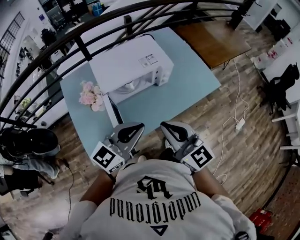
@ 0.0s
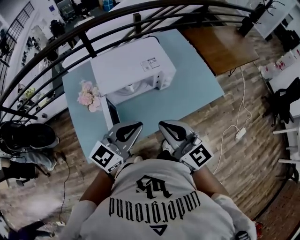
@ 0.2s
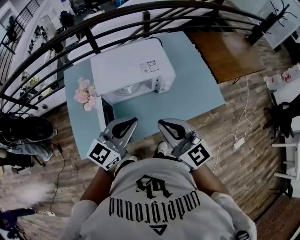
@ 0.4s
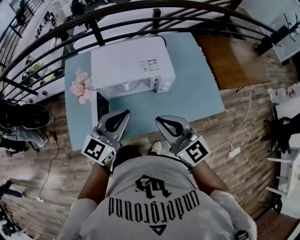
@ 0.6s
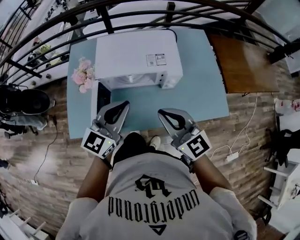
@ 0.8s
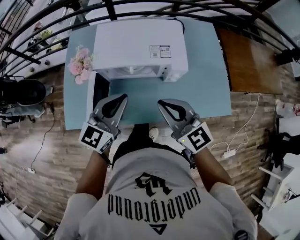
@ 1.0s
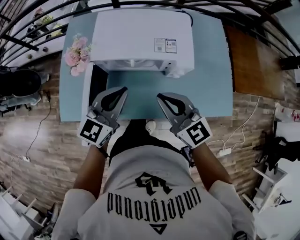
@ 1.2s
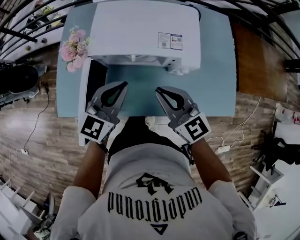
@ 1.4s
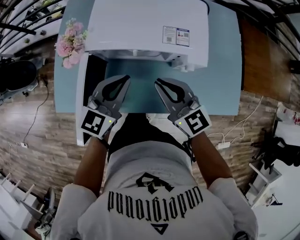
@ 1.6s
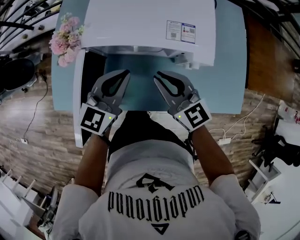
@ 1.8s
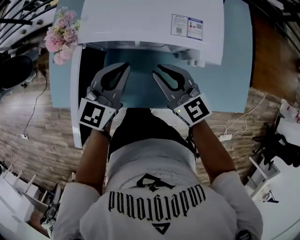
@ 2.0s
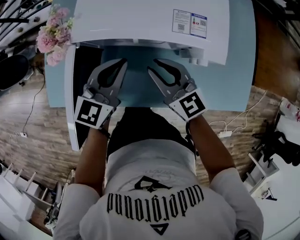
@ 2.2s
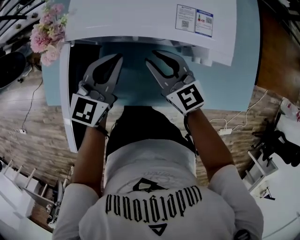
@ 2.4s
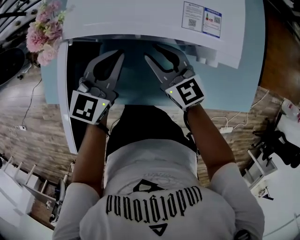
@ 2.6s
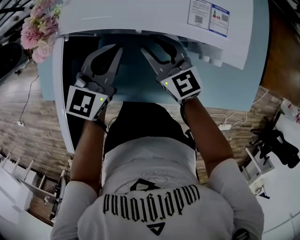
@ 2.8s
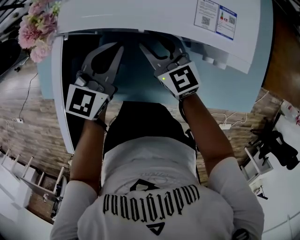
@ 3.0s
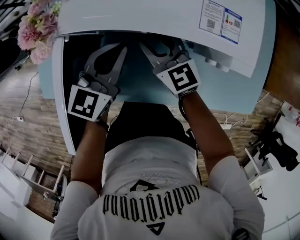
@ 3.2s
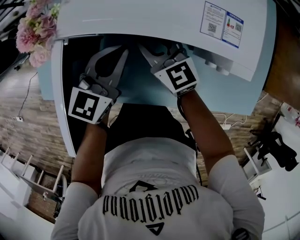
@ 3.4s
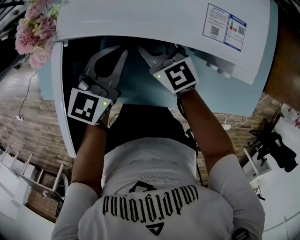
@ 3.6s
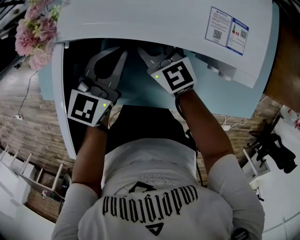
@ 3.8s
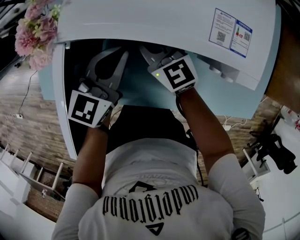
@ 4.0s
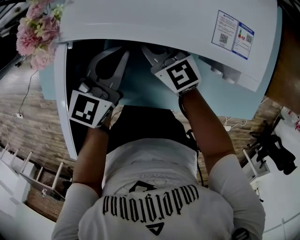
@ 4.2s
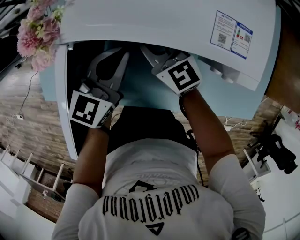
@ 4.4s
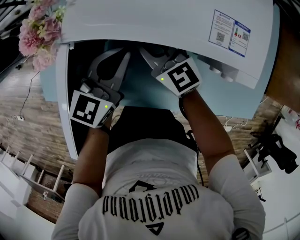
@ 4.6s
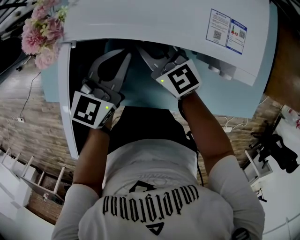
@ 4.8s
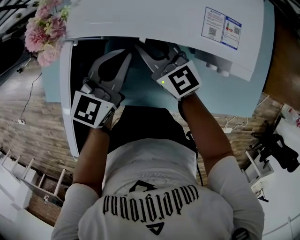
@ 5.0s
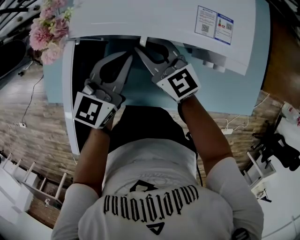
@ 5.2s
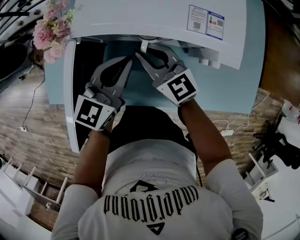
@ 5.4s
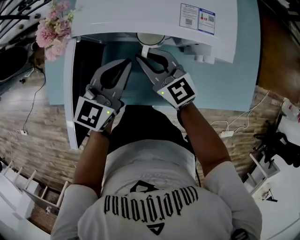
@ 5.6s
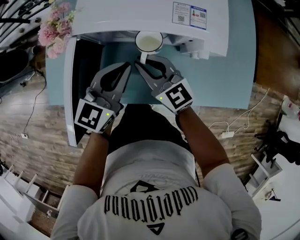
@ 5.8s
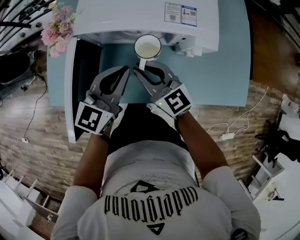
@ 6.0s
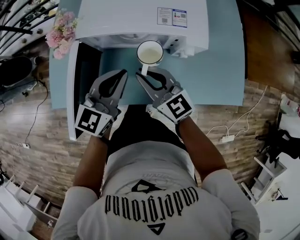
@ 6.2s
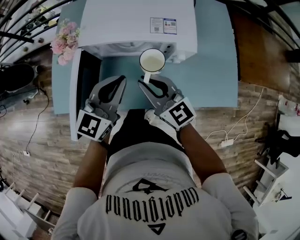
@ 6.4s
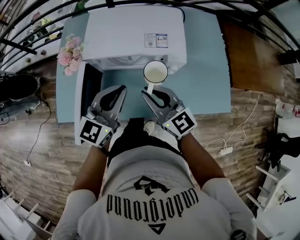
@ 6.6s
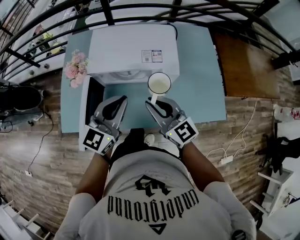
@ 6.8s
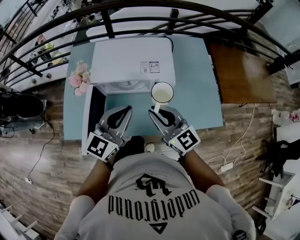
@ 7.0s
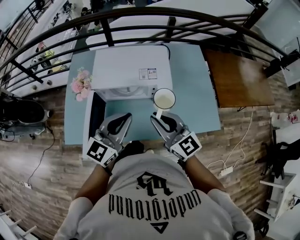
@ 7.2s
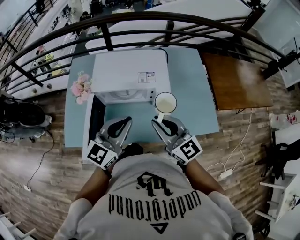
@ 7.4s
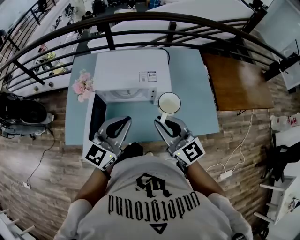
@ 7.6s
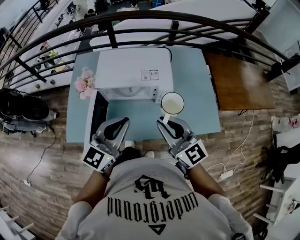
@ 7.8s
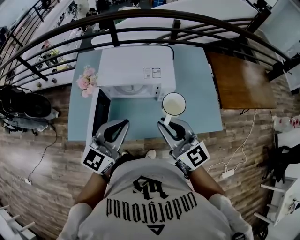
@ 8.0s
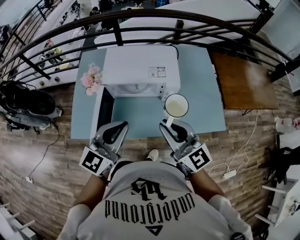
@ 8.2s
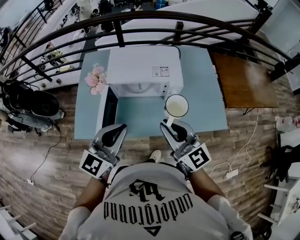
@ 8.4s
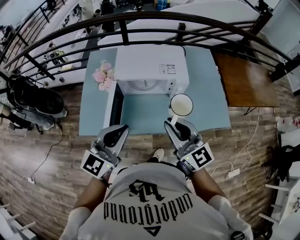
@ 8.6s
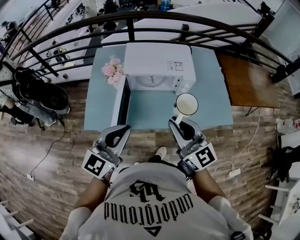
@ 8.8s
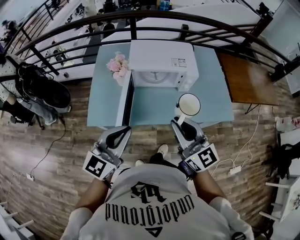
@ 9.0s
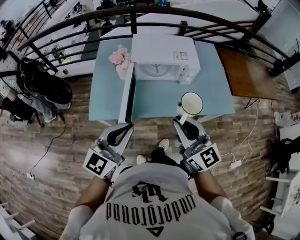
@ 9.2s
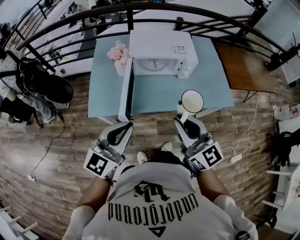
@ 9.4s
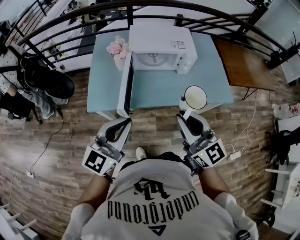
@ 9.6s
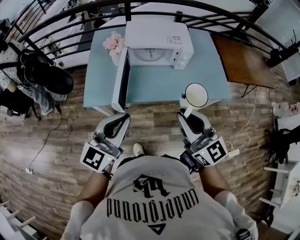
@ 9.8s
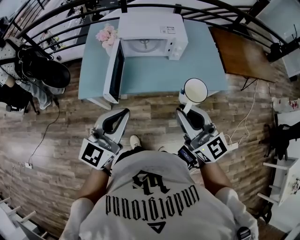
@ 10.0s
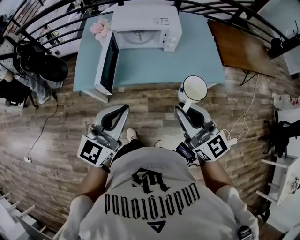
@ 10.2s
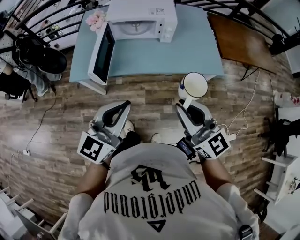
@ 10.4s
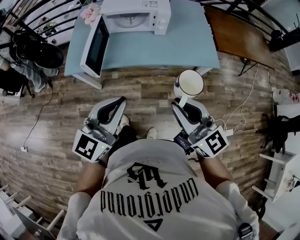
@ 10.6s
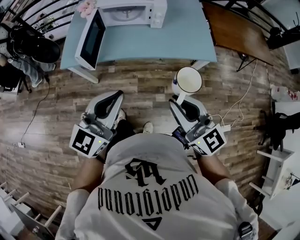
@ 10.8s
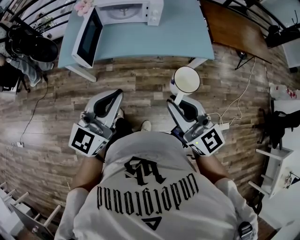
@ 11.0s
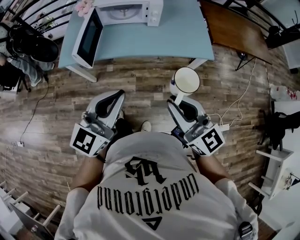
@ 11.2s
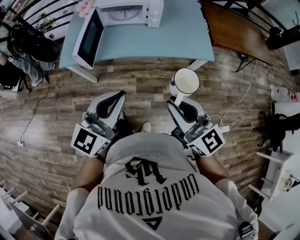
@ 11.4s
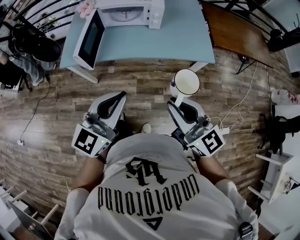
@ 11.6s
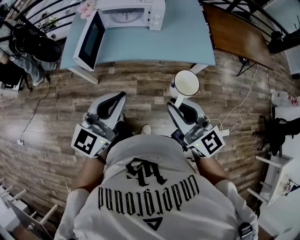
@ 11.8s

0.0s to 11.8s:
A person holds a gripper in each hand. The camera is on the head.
0.0s to 1.4s: The left gripper moves approximately 20 cm, and changes its angle by roughly 40 degrees. The right gripper shifts by about 25 cm, and turns by roughly 30 degrees.
1.4s to 3.0s: Both grippers travel together downward and forward, approximately 20 cm. The right gripper opens up.
3.0s to 4.4s: The right gripper shifts by some 5 cm.
4.4s to 6.0s: The grippers both shift backward and upward by roughly 15 cm.
6.0s to 7.4s: The left gripper travels upward and backward by about 20 cm. Meanwhile the right gripper shifts roughly 25 cm upward, to the right and backward.
7.4s to 8.8s: The right gripper moves backward, to the left and upward, some 15 cm, while the left gripper is displaced to the left and backward by some 20 cm.
8.8s to 10.4s: The grippers both shift backward and to the right by some 25 cm.
10.4s to 11.8s: The left gripper goes about 5 cm to the right. Meanwhile the right gripper is displaced backward and to the right by roughly 10 cm.

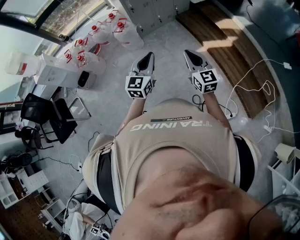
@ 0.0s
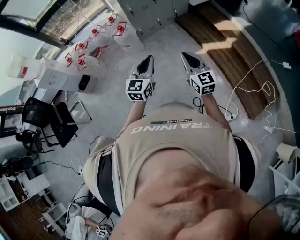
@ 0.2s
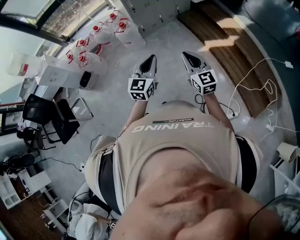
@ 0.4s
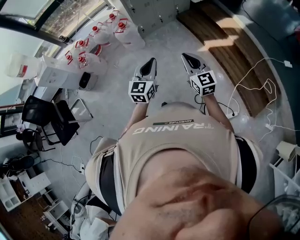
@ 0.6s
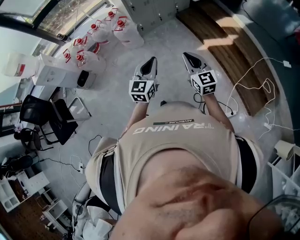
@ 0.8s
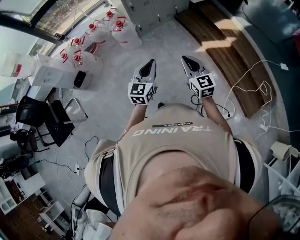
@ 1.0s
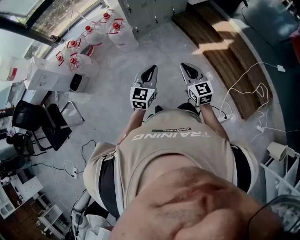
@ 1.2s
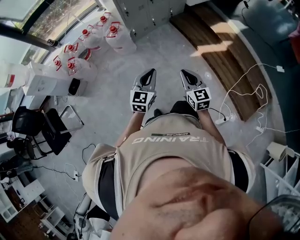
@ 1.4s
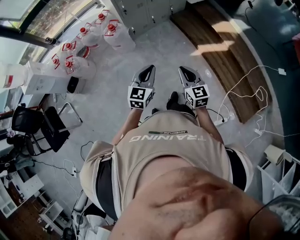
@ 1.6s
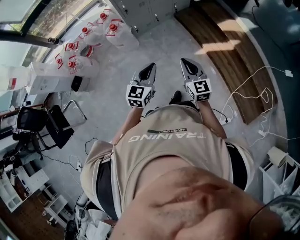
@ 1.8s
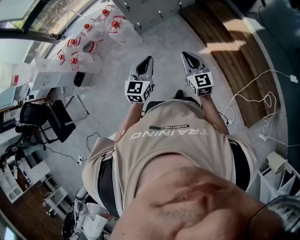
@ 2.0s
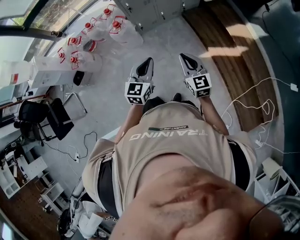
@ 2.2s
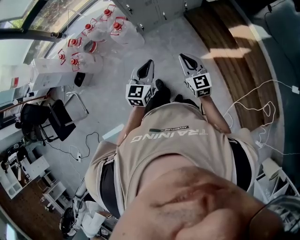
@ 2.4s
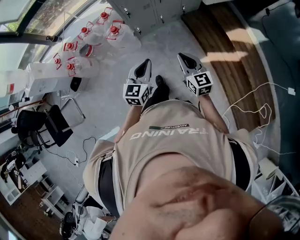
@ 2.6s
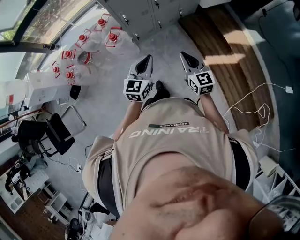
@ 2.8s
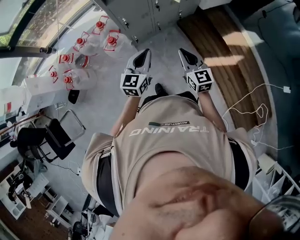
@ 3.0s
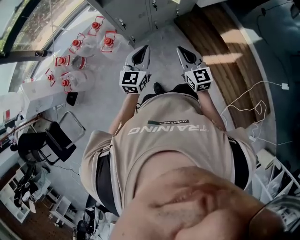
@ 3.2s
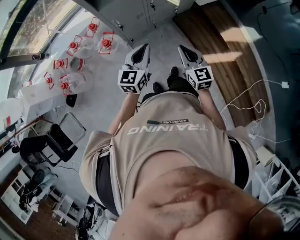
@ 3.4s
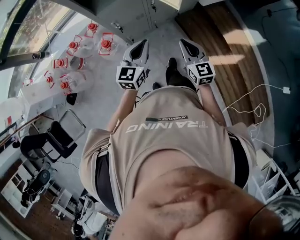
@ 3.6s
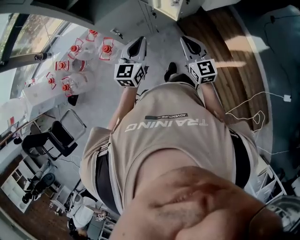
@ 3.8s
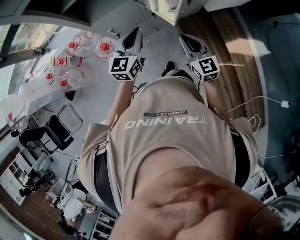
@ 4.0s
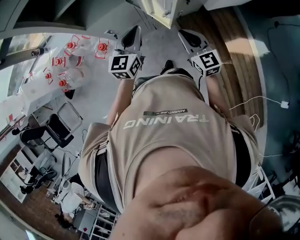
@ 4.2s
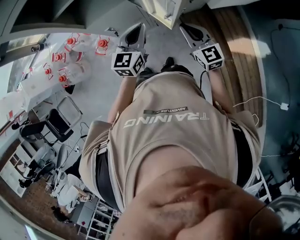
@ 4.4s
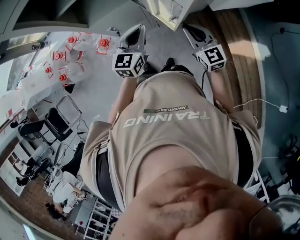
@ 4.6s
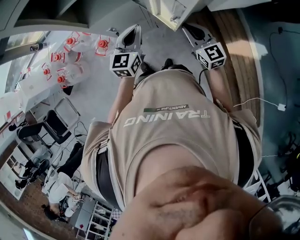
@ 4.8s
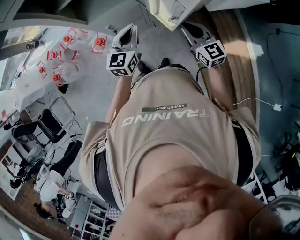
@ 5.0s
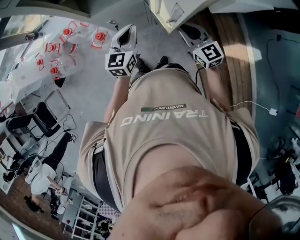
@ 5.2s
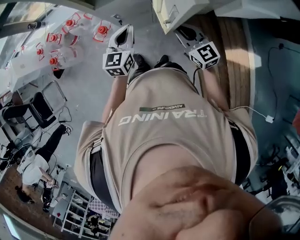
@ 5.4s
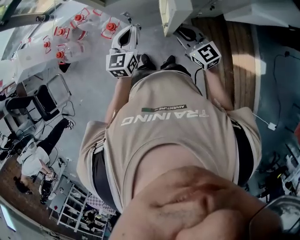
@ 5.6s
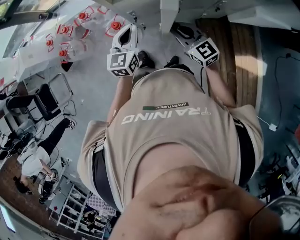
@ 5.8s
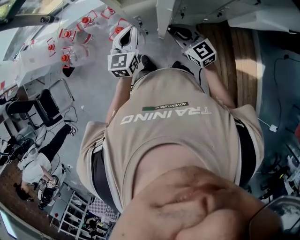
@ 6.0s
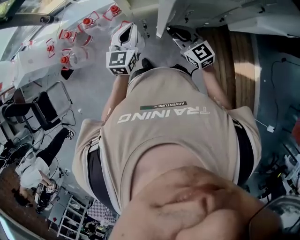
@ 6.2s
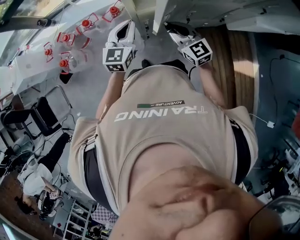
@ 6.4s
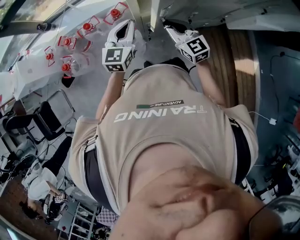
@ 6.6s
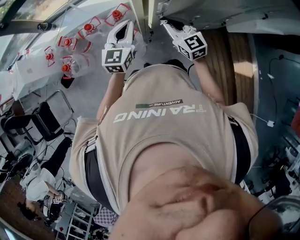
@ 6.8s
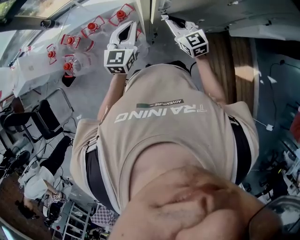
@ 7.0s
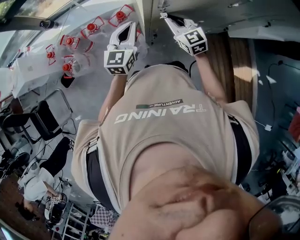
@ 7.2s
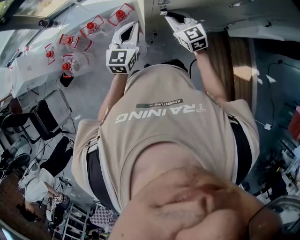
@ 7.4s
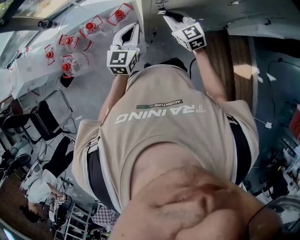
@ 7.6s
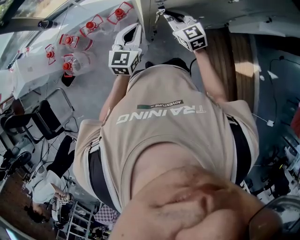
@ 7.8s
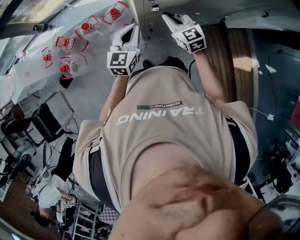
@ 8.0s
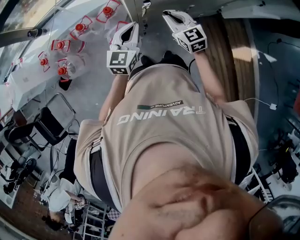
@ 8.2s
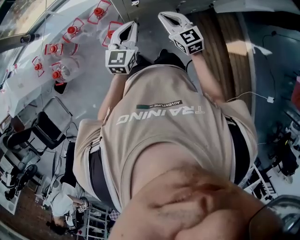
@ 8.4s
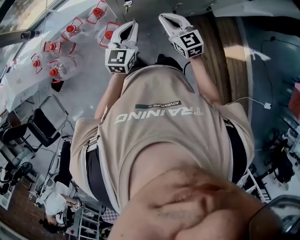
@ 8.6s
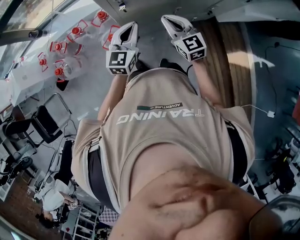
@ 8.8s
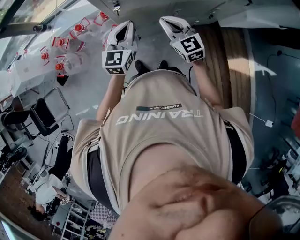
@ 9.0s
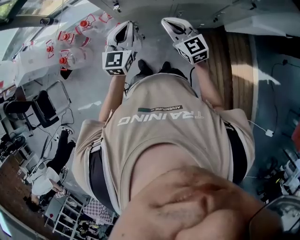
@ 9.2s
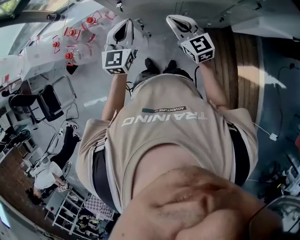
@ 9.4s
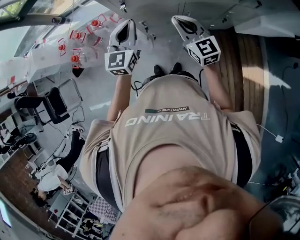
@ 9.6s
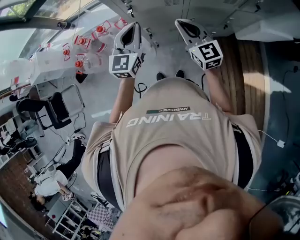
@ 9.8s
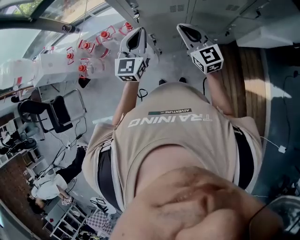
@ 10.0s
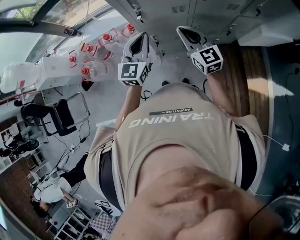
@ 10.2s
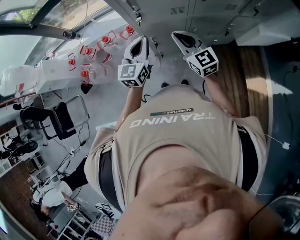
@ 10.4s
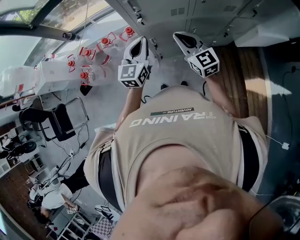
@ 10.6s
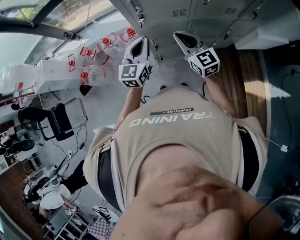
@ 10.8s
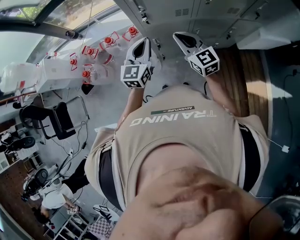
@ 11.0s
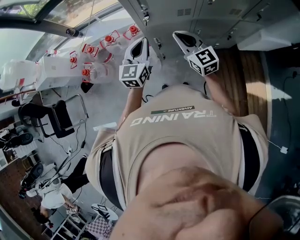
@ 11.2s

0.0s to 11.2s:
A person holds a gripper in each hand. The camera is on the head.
0.0s to 1.6s: The grippers both shift forward and downward by approximately 10 cm.
1.6s to 3.2s: Both grippers are carried forward, roughly 40 cm.
3.2s to 4.8s: Both grippers move forward, approximately 30 cm.
4.8s to 6.4s: The grippers both shift to the left by approximately 25 cm.
6.4s to 8.0s: The right gripper goes roughly 10 cm forward.
8.0s to 9.6s: The left gripper moves to the right, upward and backward, about 15 cm, while the right gripper heads to the right, backward and upward, covering about 20 cm.
9.6s to 11.2s: The left gripper changes place by about 5 cm. Meanwhile the right gripper goes approximately 5 cm to the left.

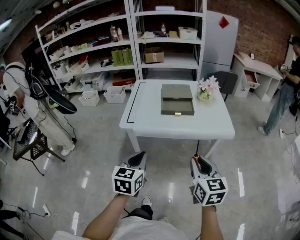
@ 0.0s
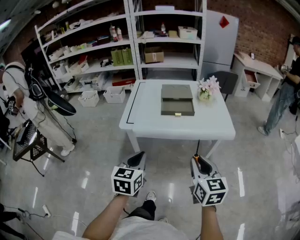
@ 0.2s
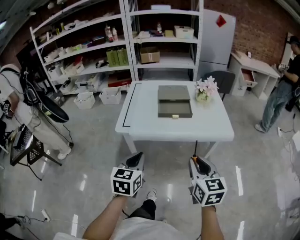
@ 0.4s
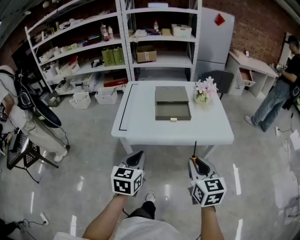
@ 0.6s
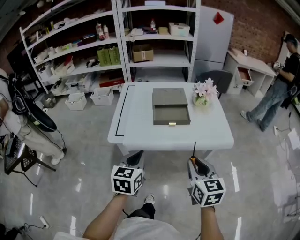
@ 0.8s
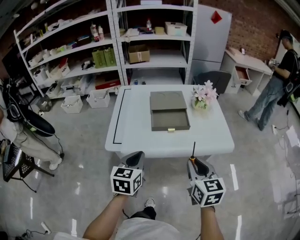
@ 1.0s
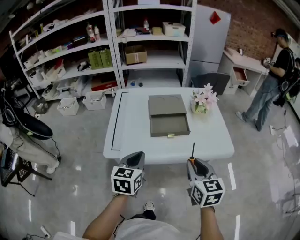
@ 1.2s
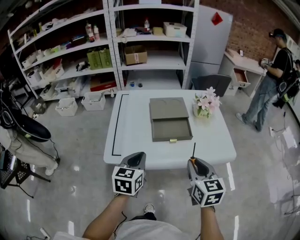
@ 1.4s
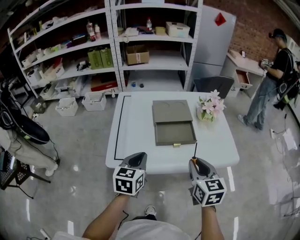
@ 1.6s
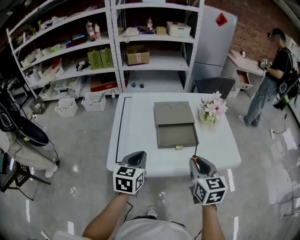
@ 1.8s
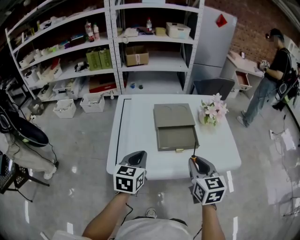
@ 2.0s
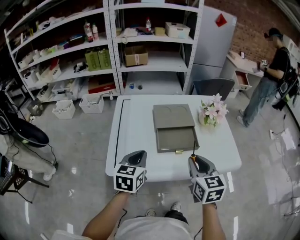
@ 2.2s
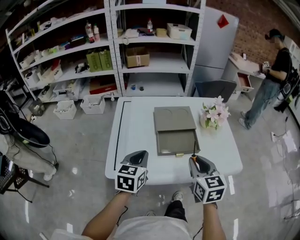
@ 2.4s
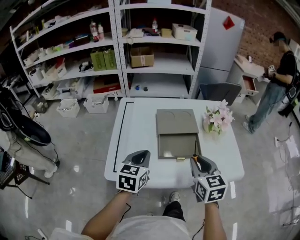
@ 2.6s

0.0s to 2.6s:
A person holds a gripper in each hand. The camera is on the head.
0.0s to 1.2s: Both grippers move forward, about 20 cm.
1.2s to 2.6s: The two grippers go approximately 15 cm forward.
